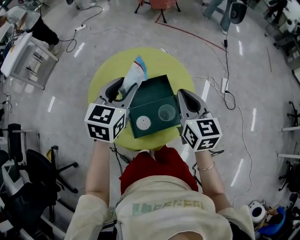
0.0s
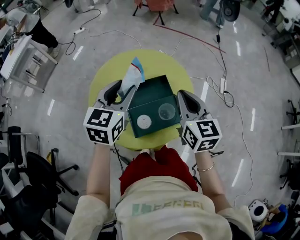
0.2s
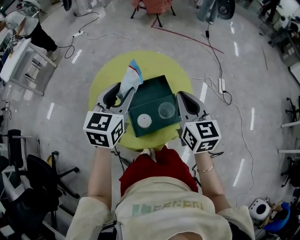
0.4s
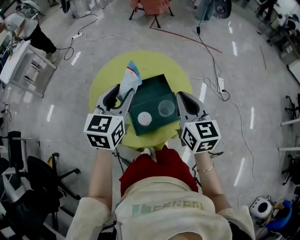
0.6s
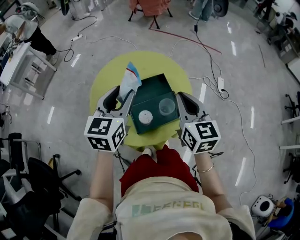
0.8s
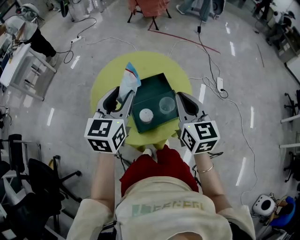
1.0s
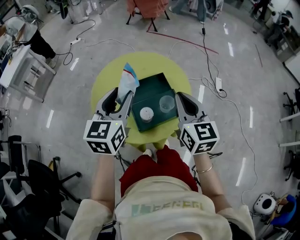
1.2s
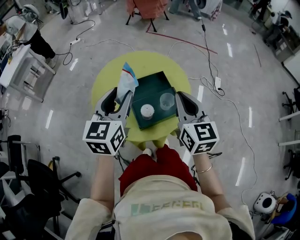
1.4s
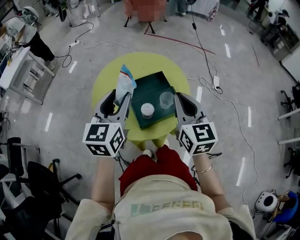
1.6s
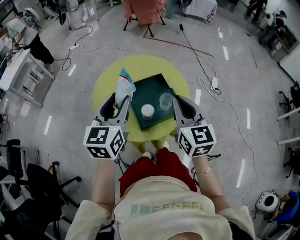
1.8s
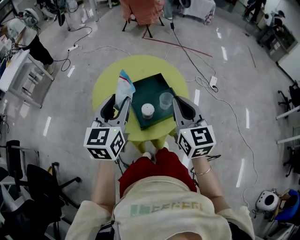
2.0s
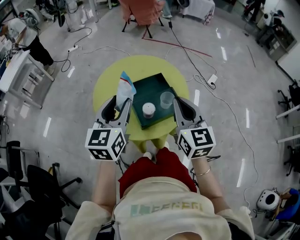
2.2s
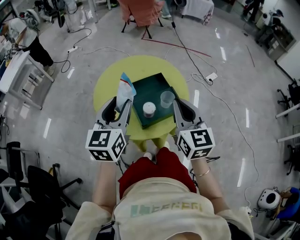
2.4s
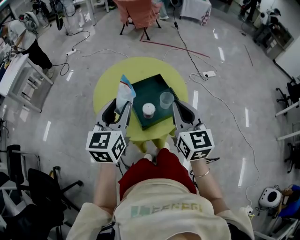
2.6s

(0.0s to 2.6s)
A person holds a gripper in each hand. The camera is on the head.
0.0s - 1.2s: The grippers both shift backward by about 10 cm.
1.2s - 2.6s: The two grippers go some 10 cm backward.

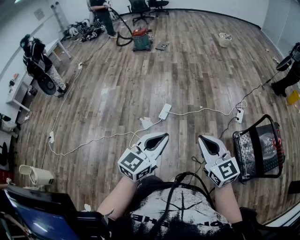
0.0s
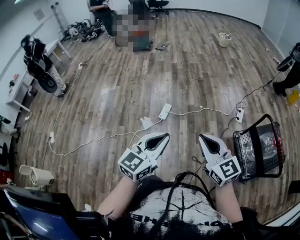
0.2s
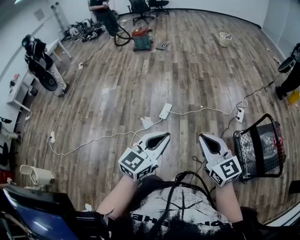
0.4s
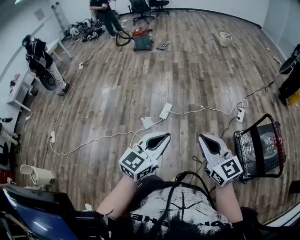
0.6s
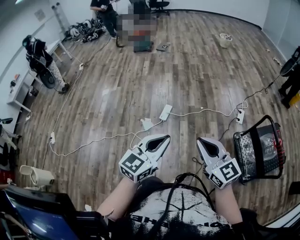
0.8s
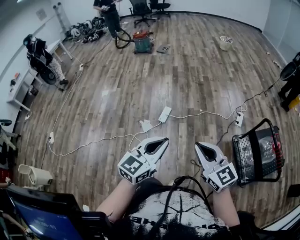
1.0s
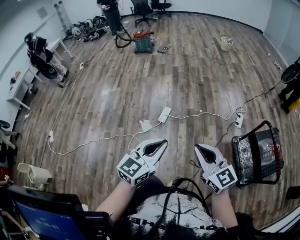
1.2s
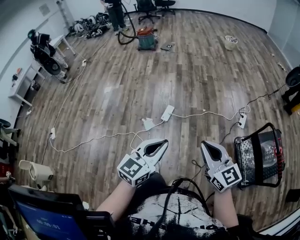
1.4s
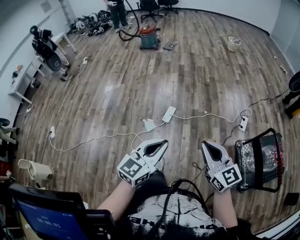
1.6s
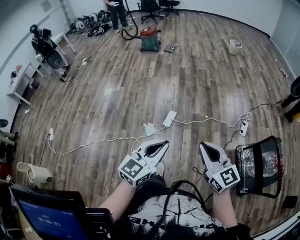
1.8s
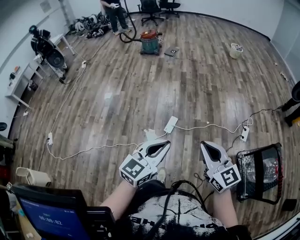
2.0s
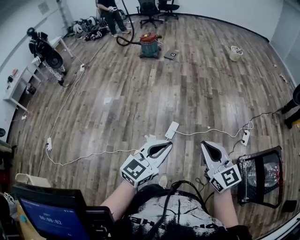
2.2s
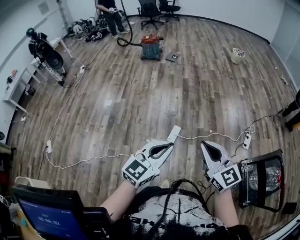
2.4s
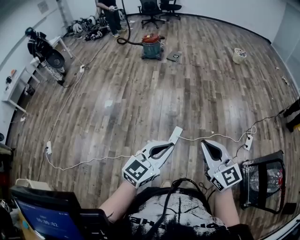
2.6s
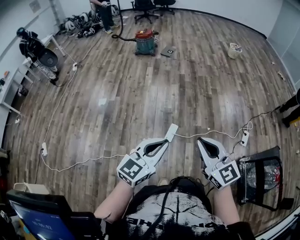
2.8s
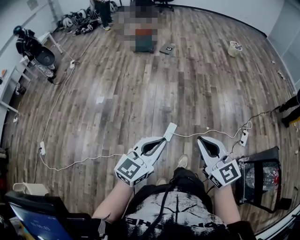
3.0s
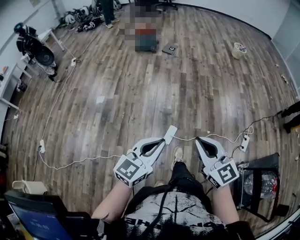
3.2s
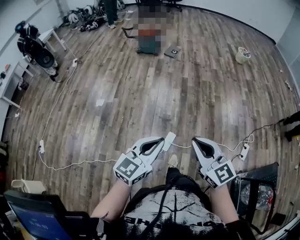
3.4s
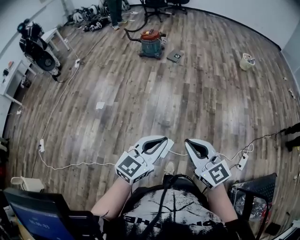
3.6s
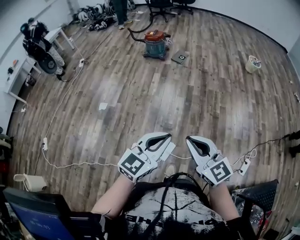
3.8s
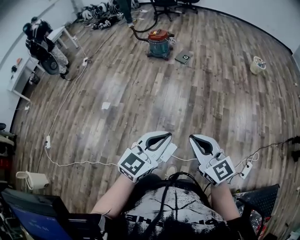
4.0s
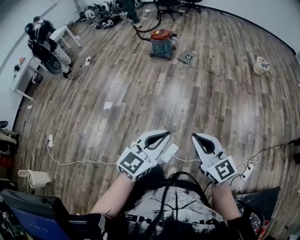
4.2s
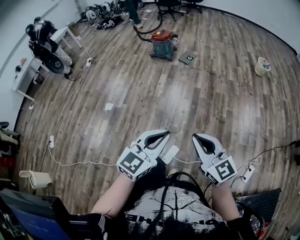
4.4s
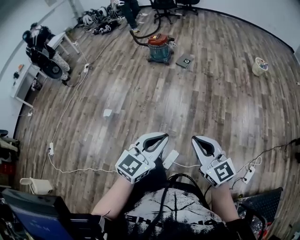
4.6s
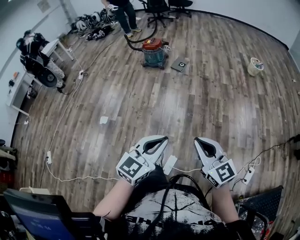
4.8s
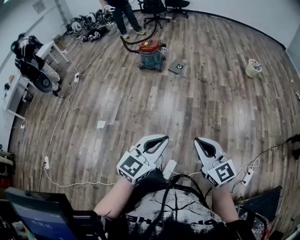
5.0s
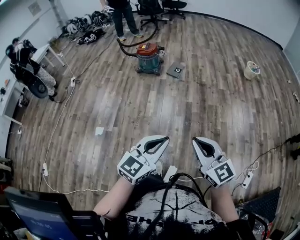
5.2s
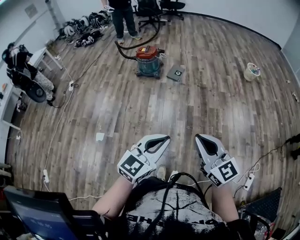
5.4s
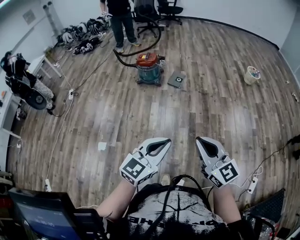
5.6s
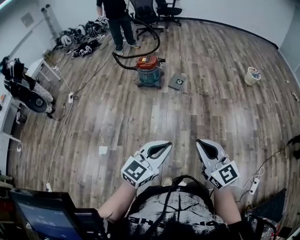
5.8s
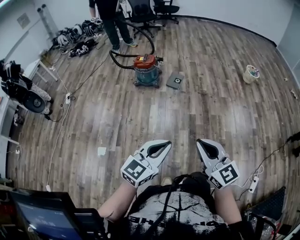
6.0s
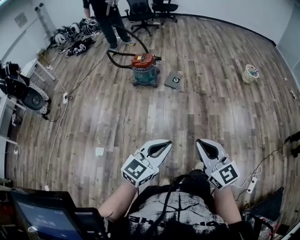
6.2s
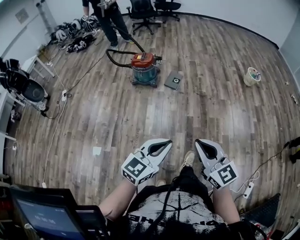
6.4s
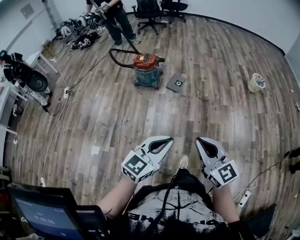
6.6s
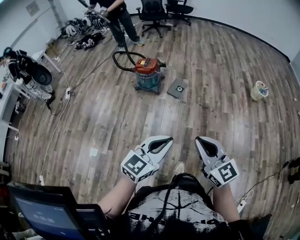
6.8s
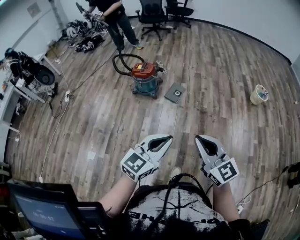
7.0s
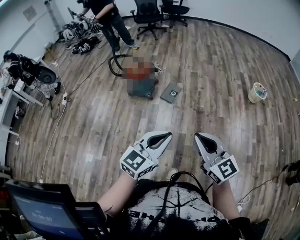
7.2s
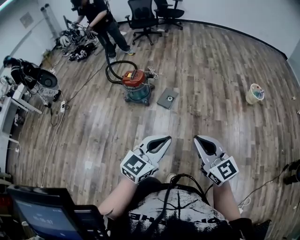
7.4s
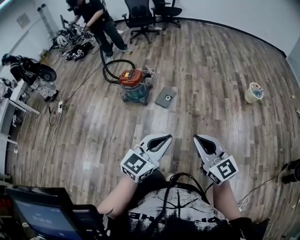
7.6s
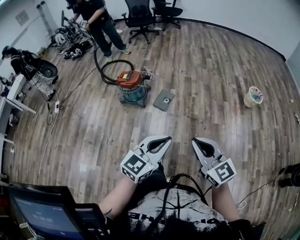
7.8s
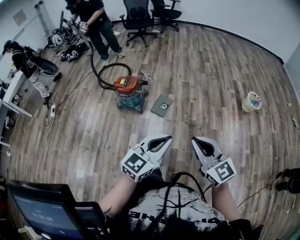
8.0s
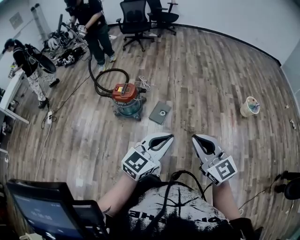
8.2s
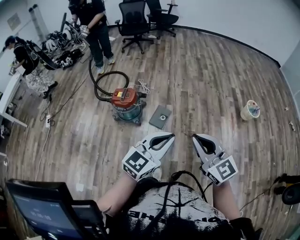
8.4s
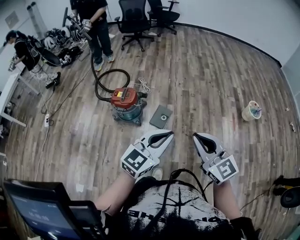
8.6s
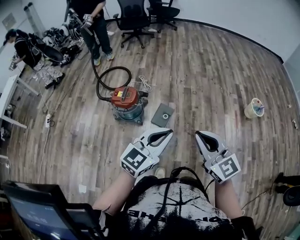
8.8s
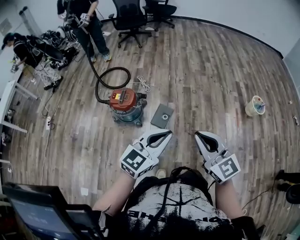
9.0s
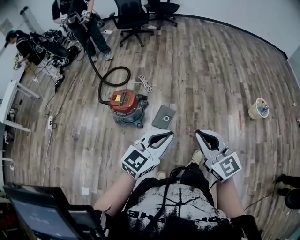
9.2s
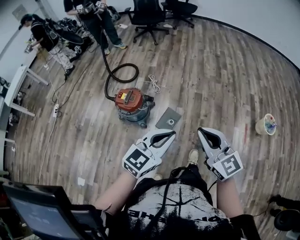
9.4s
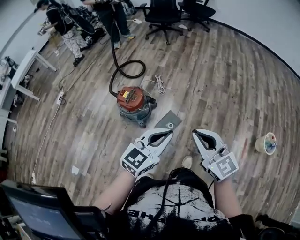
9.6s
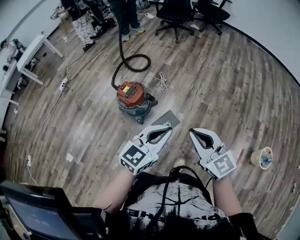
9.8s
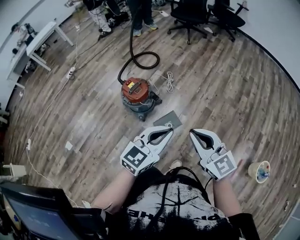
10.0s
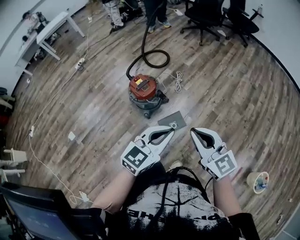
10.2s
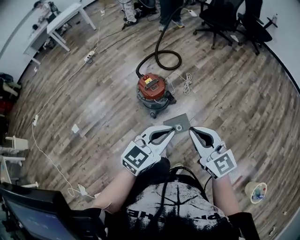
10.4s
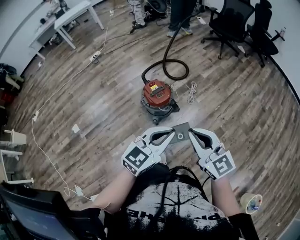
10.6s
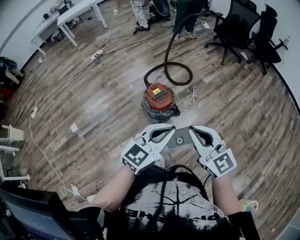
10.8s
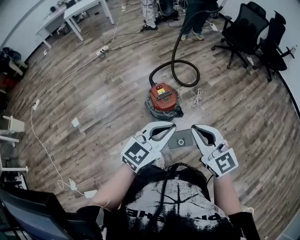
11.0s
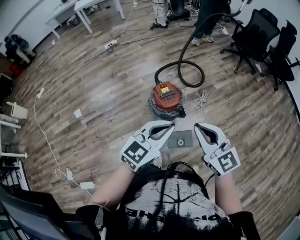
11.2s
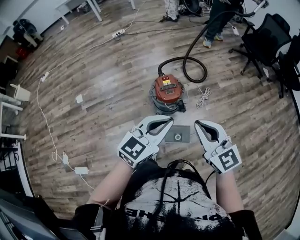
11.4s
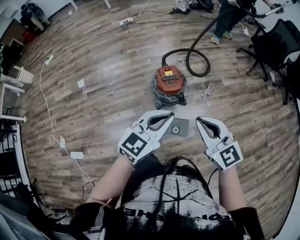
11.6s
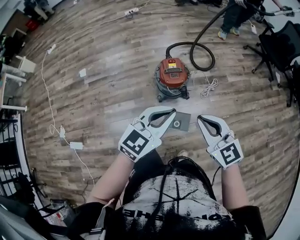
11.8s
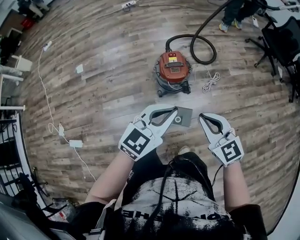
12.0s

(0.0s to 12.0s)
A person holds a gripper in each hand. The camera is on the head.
0.0s - 1.6s: The grippers make only small movements.
1.6s - 3.0s: The two grippers go roughly 35 cm forward and to the left.
3.0s - 4.4s: Both grippers move forward, some 35 cm.
4.4s - 6.0s: Both grippers move forward and to the left, about 35 cm.
6.0s - 7.6s: The two grippers travel together, forward and to the right, roughly 40 cm.
7.6s - 9.0s: The two grippers go some 35 cm forward.
9.0s - 10.4s: The right gripper ends up some 30 cm from where it was, and changes its angle by some 50 degrees. The left gripper moves some 25 cm, and swivels some 40 degrees.
10.4s - 12.0s: The right gripper changes place by about 20 cm, and changes its angle by some 40 degrees. Meanwhile the left gripper shifts by about 15 cm, and turns by roughly 30 degrees.

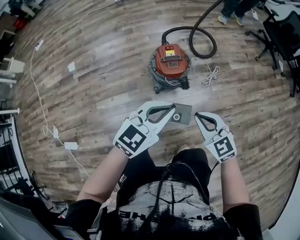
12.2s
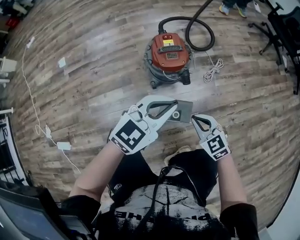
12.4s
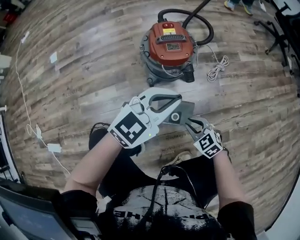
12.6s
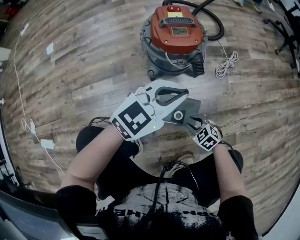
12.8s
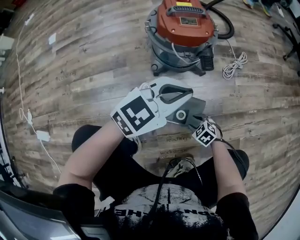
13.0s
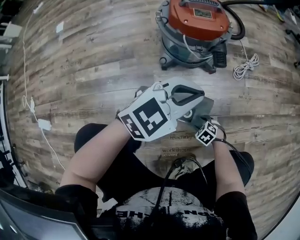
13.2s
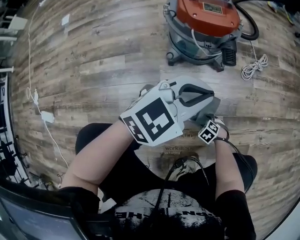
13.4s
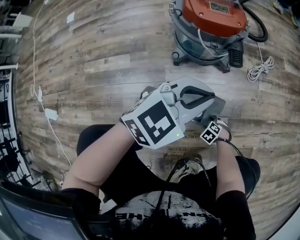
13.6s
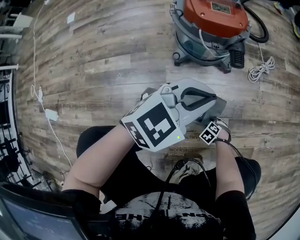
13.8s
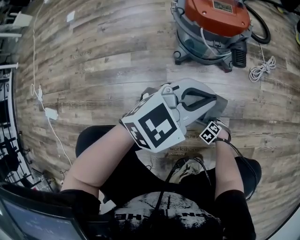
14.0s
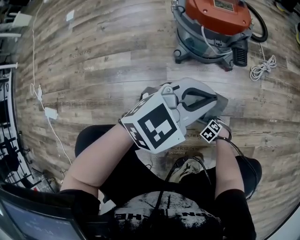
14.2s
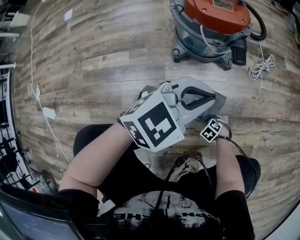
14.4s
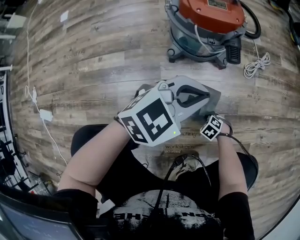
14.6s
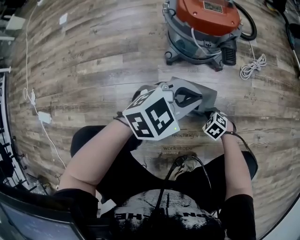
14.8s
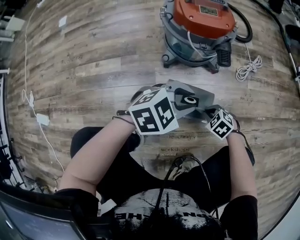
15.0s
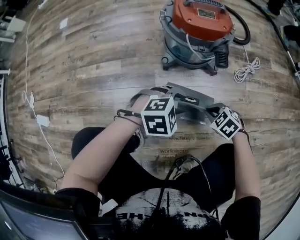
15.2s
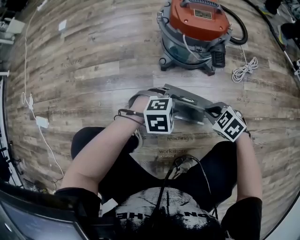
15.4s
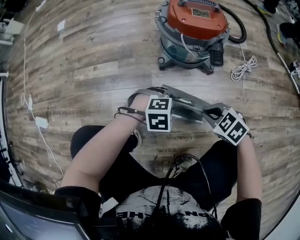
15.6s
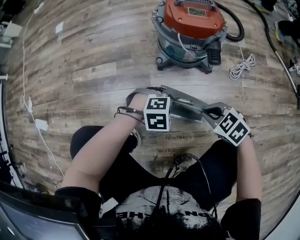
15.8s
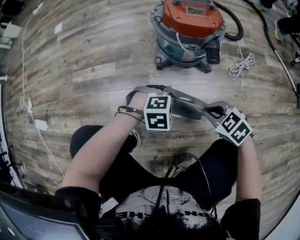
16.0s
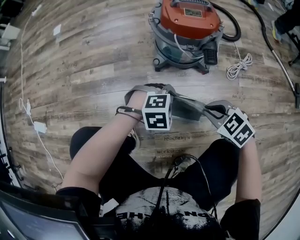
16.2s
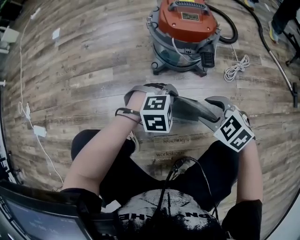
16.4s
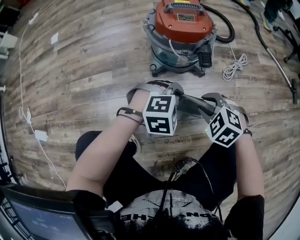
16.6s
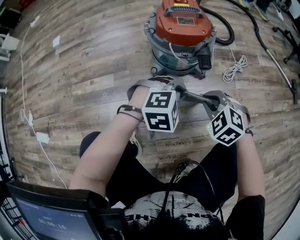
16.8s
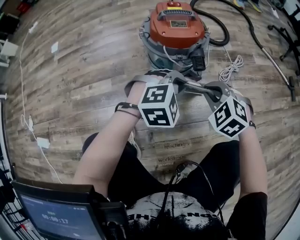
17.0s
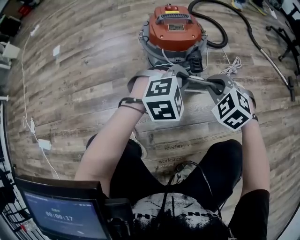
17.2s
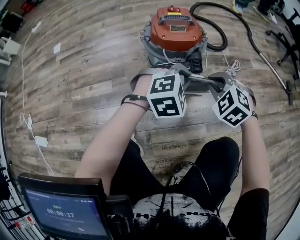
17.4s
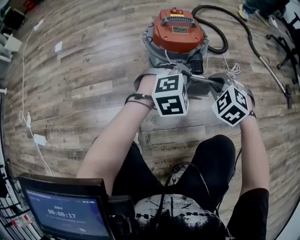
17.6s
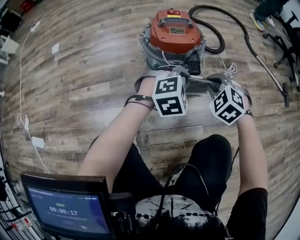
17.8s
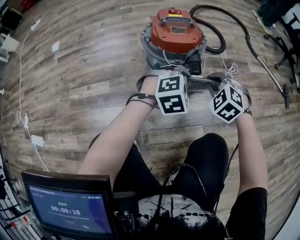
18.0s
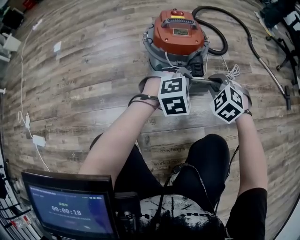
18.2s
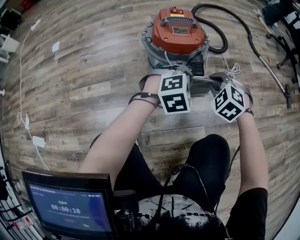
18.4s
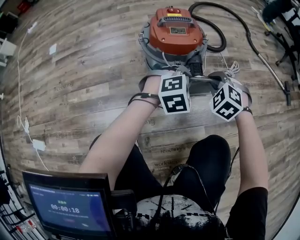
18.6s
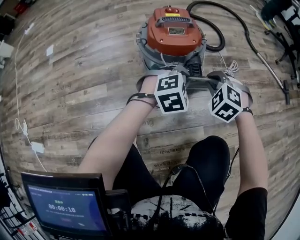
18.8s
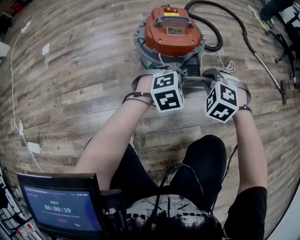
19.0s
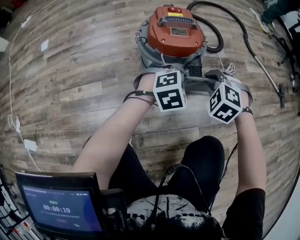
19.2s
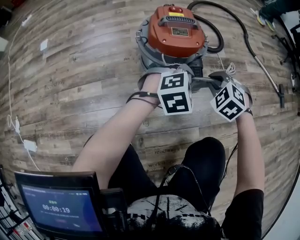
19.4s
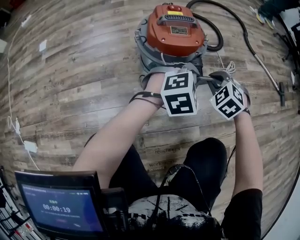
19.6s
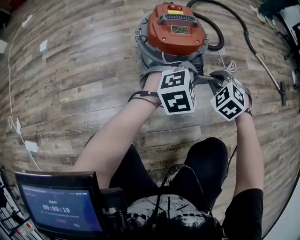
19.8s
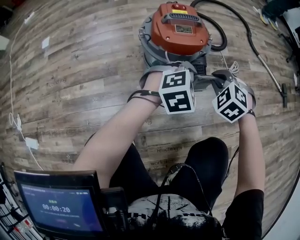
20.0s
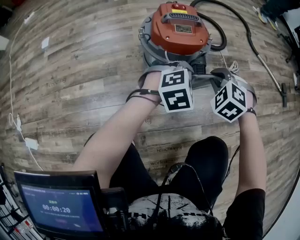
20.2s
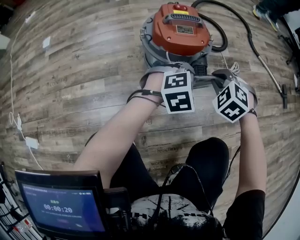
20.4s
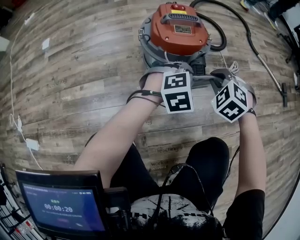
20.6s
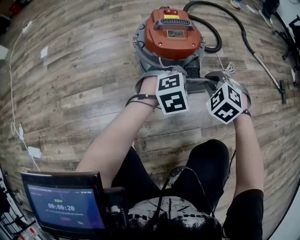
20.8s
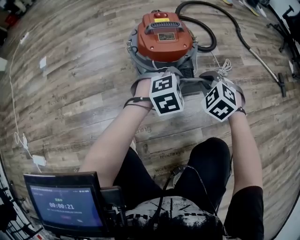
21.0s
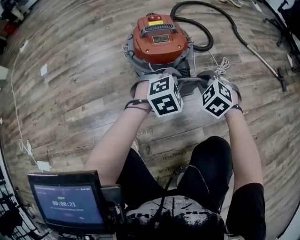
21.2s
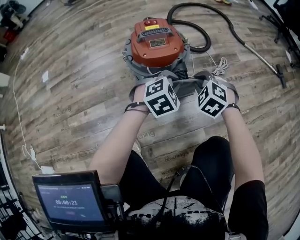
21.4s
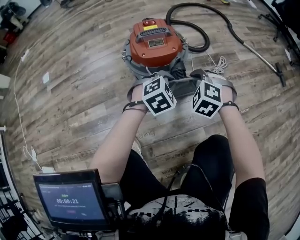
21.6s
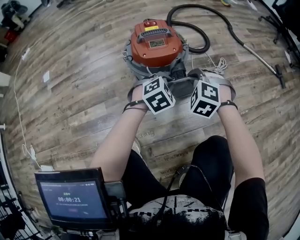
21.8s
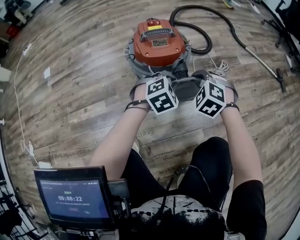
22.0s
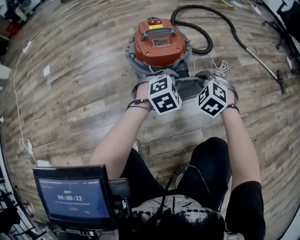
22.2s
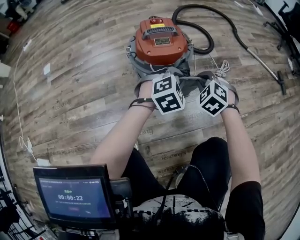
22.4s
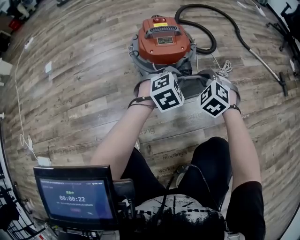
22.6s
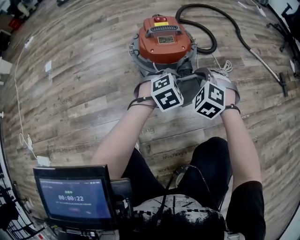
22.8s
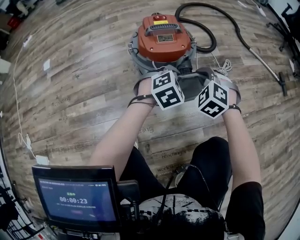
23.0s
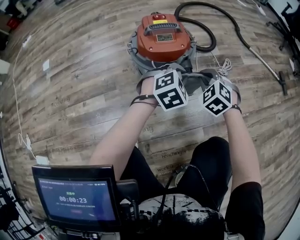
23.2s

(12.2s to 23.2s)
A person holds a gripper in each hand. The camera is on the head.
12.2s - 13.8s: The left gripper is displaced downward by about 40 cm. The right gripper heads downward, covering about 80 cm, angles its fingers downward, by about 60 degrees, and opens.
13.8s - 15.4s: The right gripper moves upward, approximately 25 cm, swivels about 30 degrees, and closes up. Meanwhile the left gripper is displaced downward by approximately 15 cm, tilts its fingers some 40 degrees downward, and opens up.
15.4s - 17.0s: The two grippers go some 15 cm upward. The right gripper swivels approximately 30 degrees, and opens and closes again. The left gripper turns by some 20 degrees, and closes.
17.0s - 18.4s: The right gripper heads forward, covering roughly 5 cm. The left gripper changes place by some 5 cm.
20.0s - 23.2s: The grippers move only a little.
